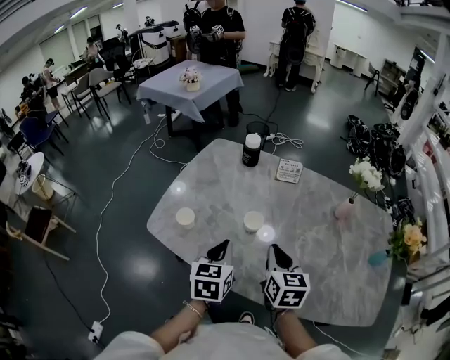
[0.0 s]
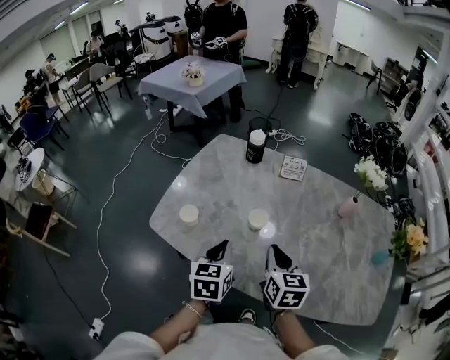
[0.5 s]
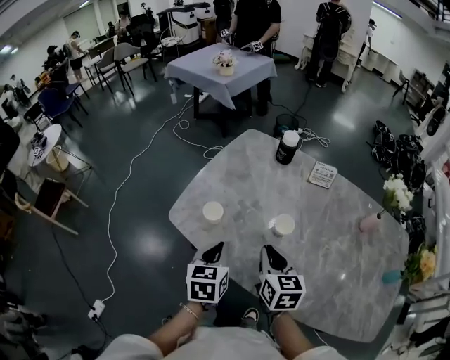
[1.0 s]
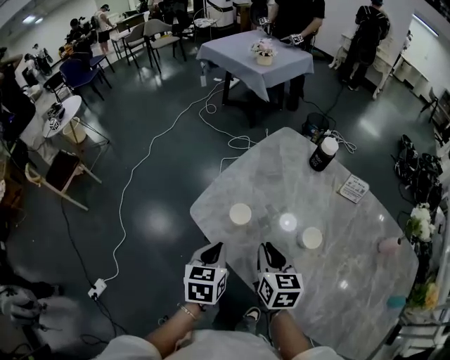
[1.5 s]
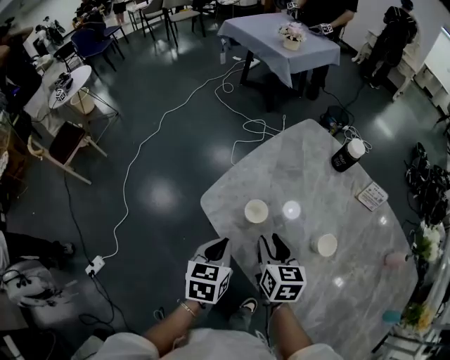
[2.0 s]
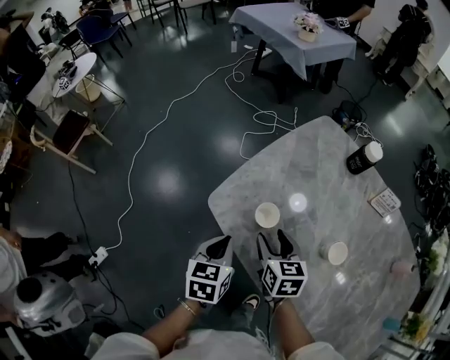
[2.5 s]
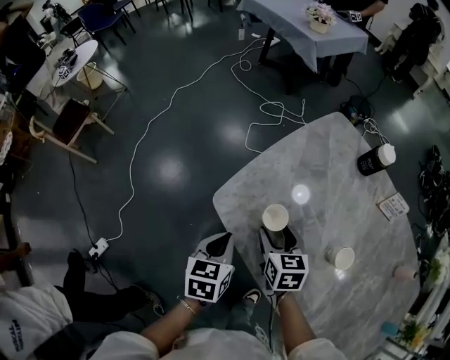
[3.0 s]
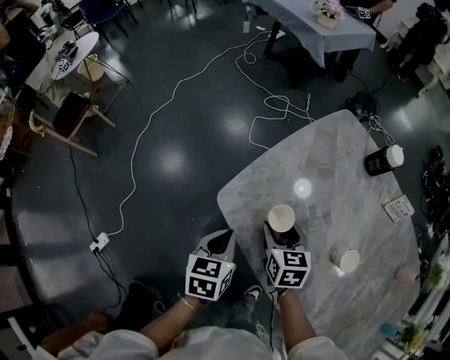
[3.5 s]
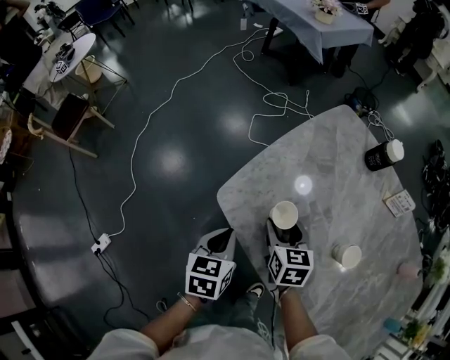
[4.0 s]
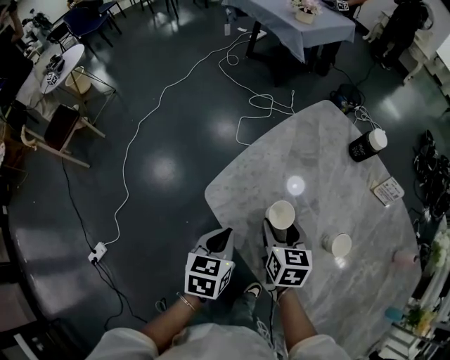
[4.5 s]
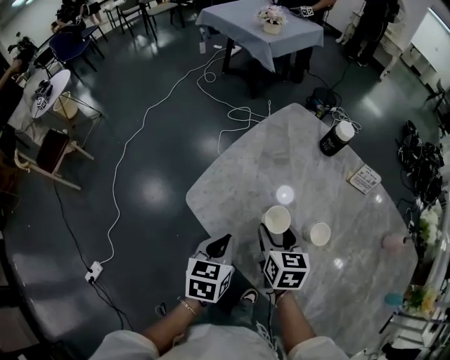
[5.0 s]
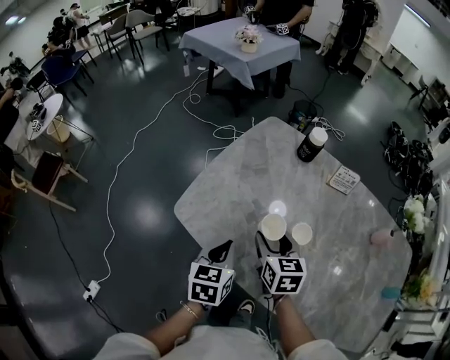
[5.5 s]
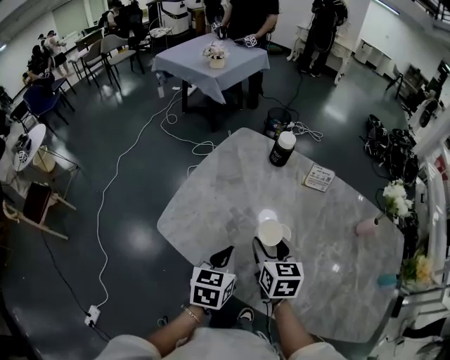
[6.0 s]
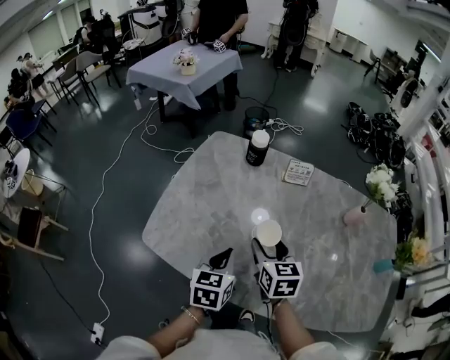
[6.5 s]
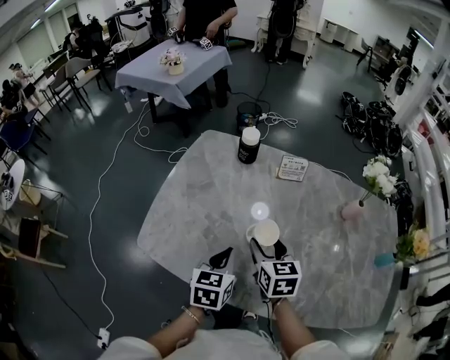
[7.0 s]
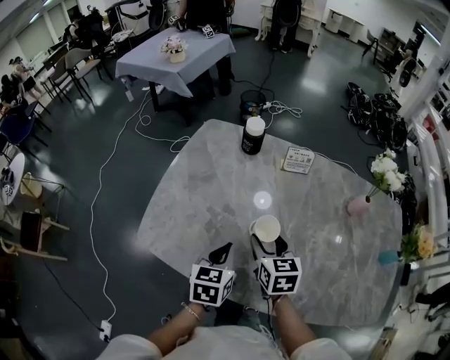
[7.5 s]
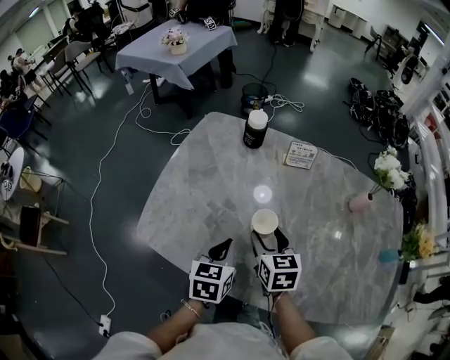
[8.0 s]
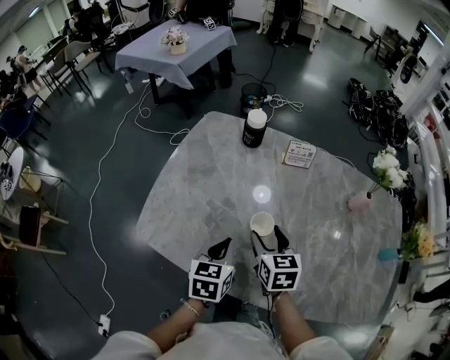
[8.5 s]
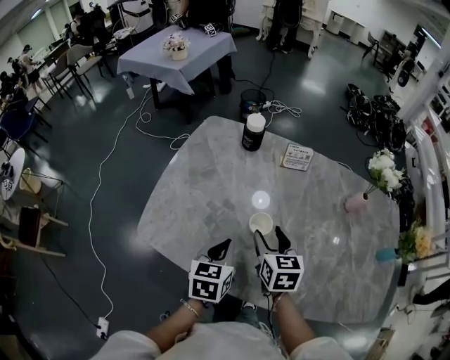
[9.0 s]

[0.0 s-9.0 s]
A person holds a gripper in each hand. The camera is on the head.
0.0 to 2.0 s: The two grippers go about 25 cm to the left and downward. The right gripper changes its angle by about 30 degrees, and opens, while the left gripper changes its angle by approximately 20 degrees.
2.0 to 4.5 s: The right gripper travels forward by about 5 cm, and opens up.
4.5 to 7.0 s: The left gripper travels to the right by about 25 cm, and swivels roughly 30 degrees. The right gripper is displaced to the right and upward by approximately 25 cm, and turns by approximately 20 degrees.
7.0 to 9.0 s: The grippers stay close to where they were, moving slightly.

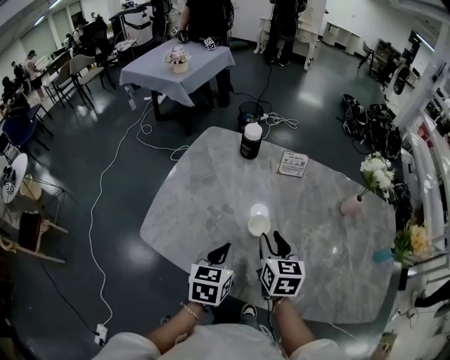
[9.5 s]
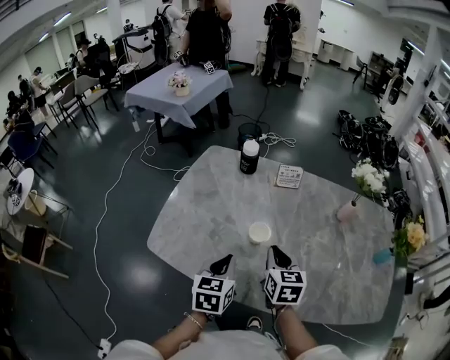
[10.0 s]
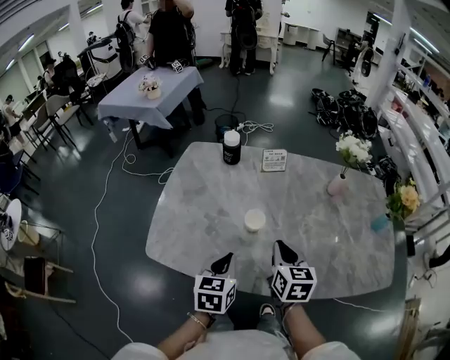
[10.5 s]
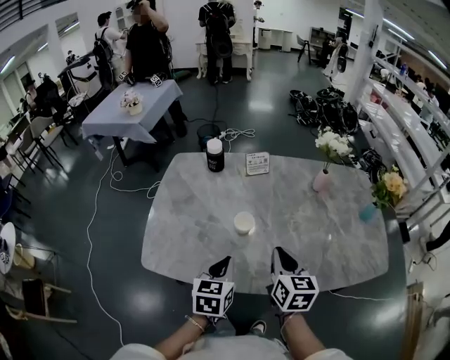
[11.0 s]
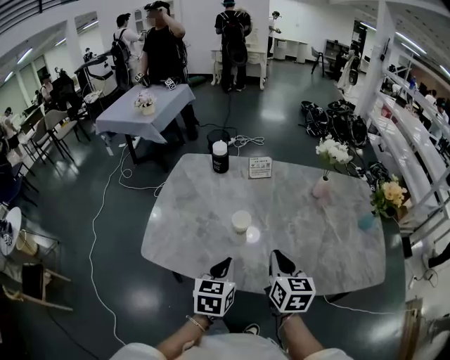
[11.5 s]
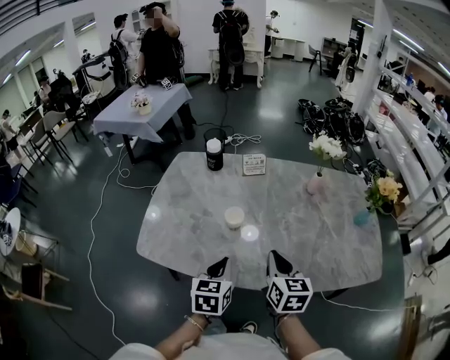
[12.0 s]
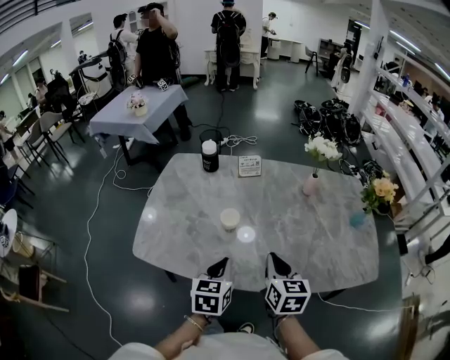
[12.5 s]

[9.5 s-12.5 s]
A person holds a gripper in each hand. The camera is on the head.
9.5 to 11.0 s: The left gripper travels backward by some 5 cm; the right gripper goes about 15 cm backward, to the right and upward, and closes.
11.0 to 12.5 s: The right gripper ends up about 5 cm from where it was. The left gripper is displaced to the right by about 5 cm.

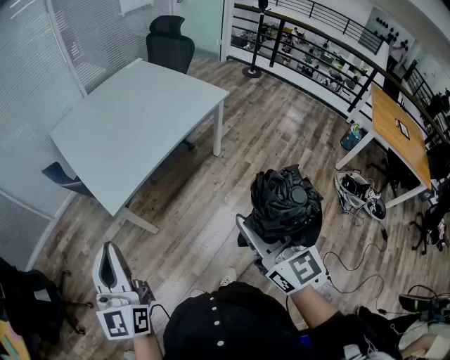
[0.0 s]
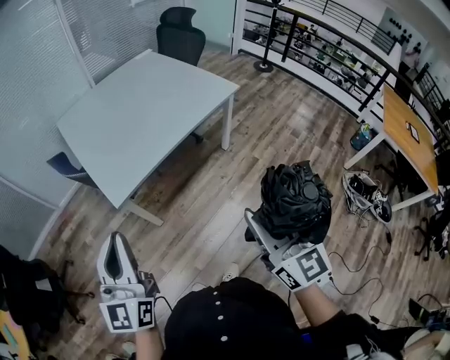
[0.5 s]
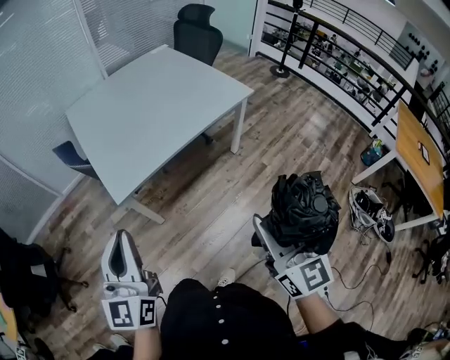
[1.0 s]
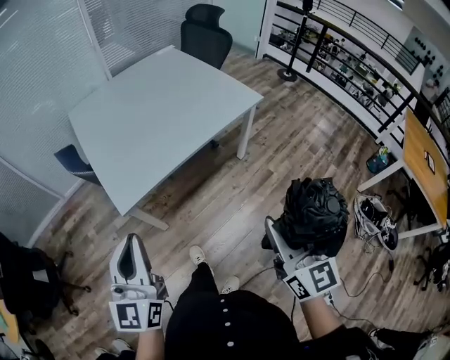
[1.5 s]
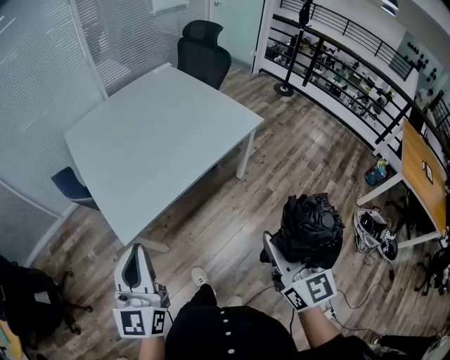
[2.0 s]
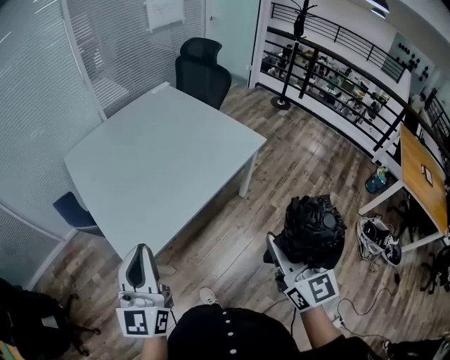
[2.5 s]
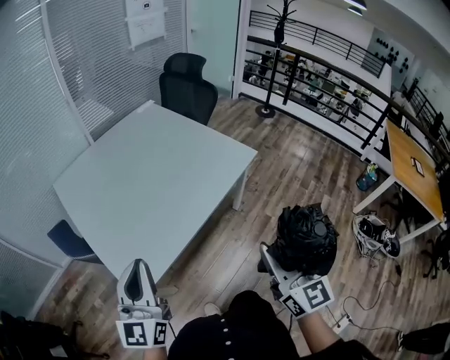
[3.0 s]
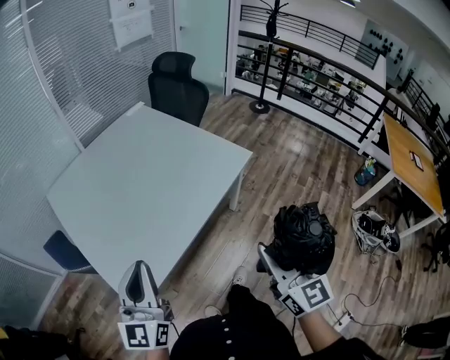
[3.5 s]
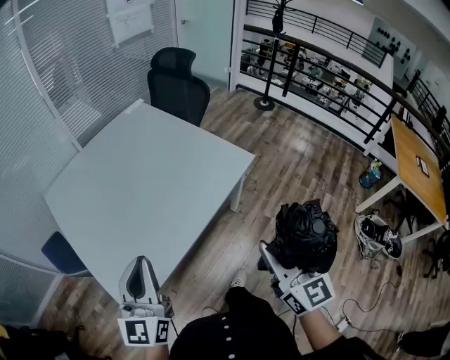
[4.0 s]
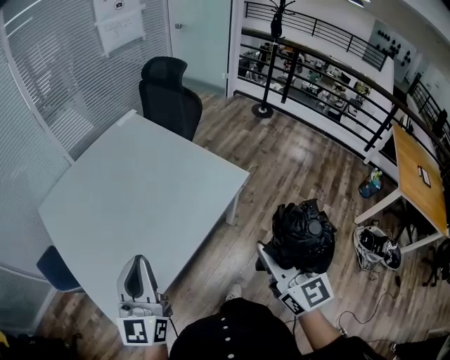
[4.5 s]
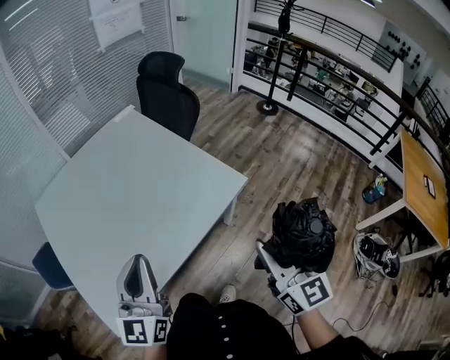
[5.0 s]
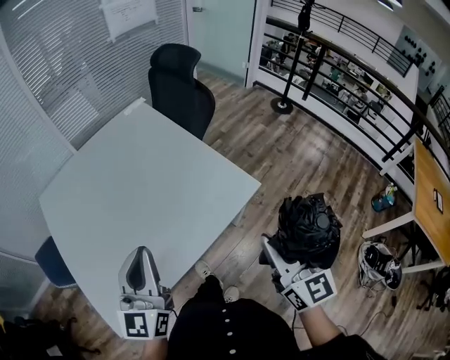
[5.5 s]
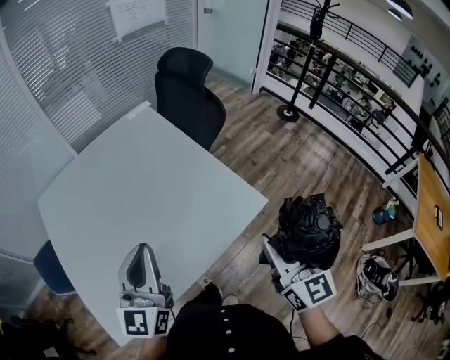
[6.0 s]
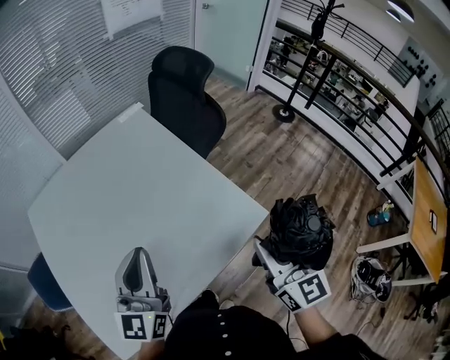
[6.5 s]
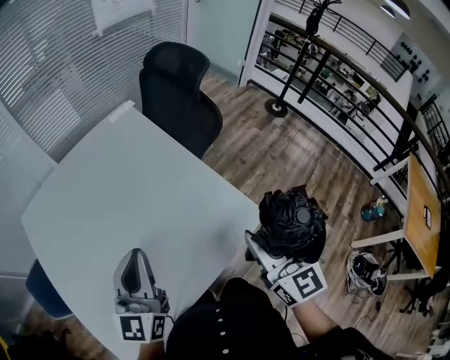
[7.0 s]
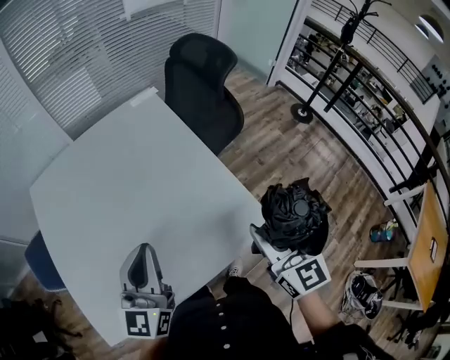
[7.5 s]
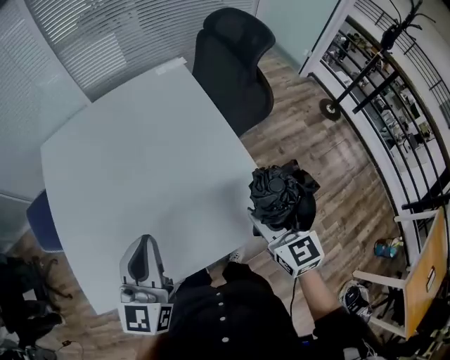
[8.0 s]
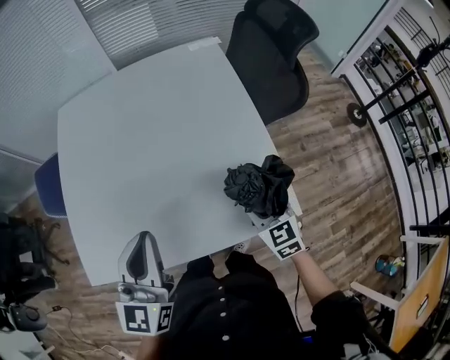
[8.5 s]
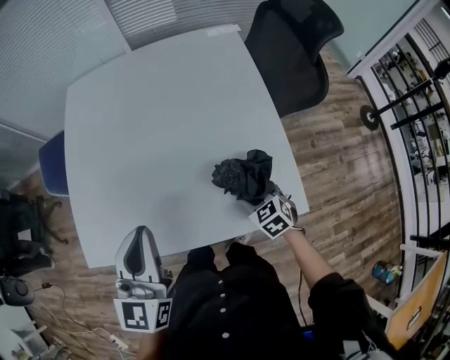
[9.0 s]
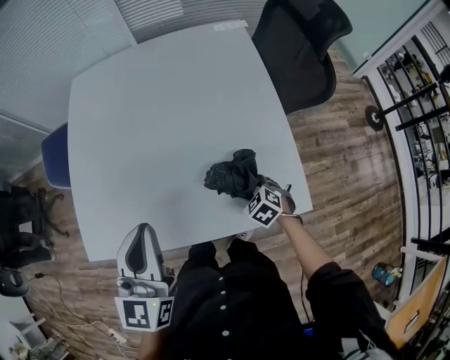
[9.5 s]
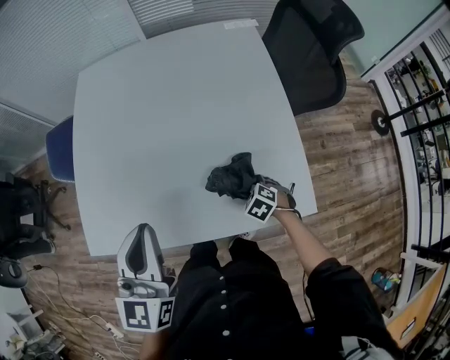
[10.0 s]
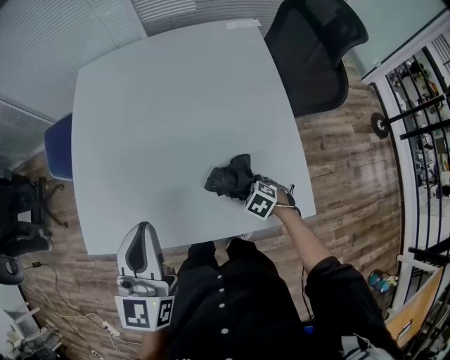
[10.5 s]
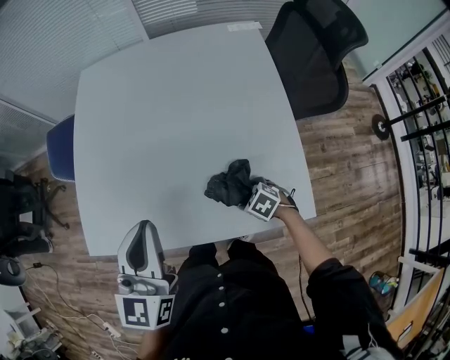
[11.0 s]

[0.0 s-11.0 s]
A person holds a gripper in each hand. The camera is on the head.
0.0 to 2.0 s: The two grippers go some 15 cm forward.
2.0 to 3.5 s: Both grippers travel together forward, about 15 cm.
3.5 to 5.5 s: The two grippers go approximately 25 cm forward and to the right.
5.5 to 7.5 s: Both grippers travel together forward, some 20 cm.
7.5 to 9.0 s: The left gripper ends up approximately 10 cm from where it was, and turns by roughly 30 degrees, while the right gripper goes approximately 30 cm downward, and points its fingers approximately 40 degrees further downward.
9.0 to 11.0 s: The right gripper shifts roughly 10 cm downward, and changes its angle by roughly 30 degrees.

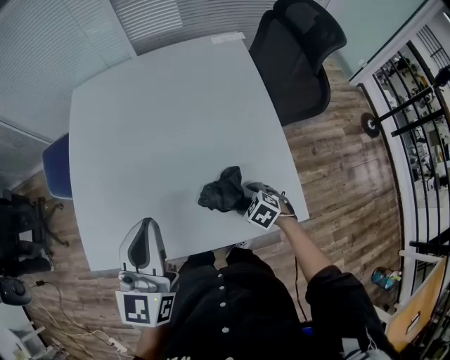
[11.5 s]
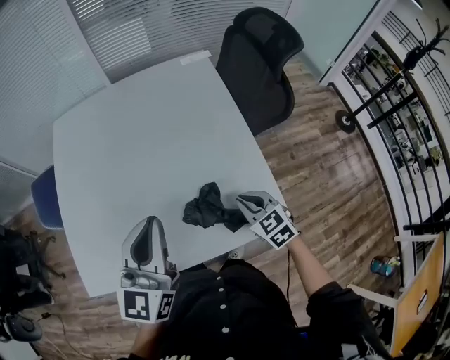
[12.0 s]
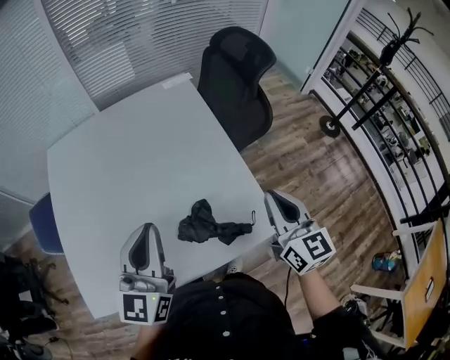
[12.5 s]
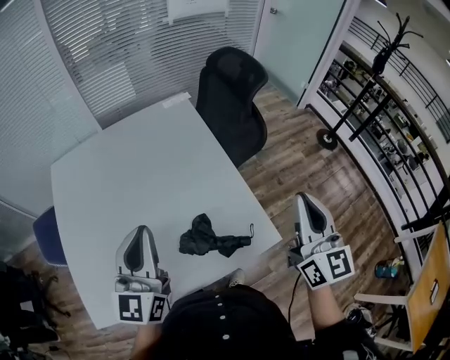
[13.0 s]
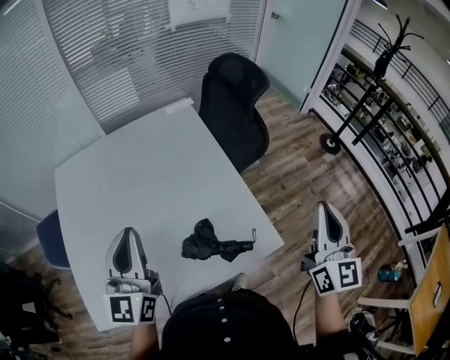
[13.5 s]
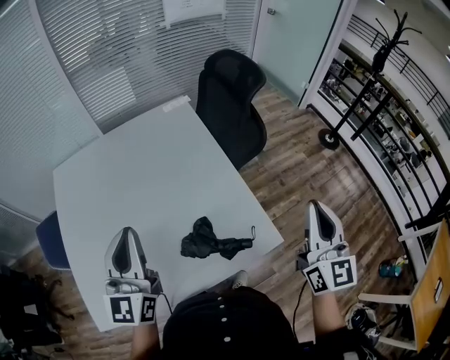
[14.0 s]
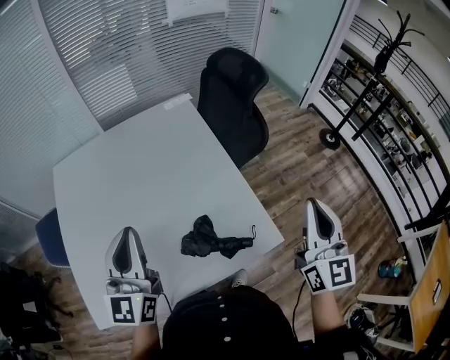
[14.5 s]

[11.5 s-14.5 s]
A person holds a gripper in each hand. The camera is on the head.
11.5 to 13.0 s: The right gripper moves upward, some 40 cm, angles its fingers upward, by some 70 degrees, and closes up. The left gripper moves roughly 10 cm.
13.0 to 14.5 s: The grippers move only a little.
